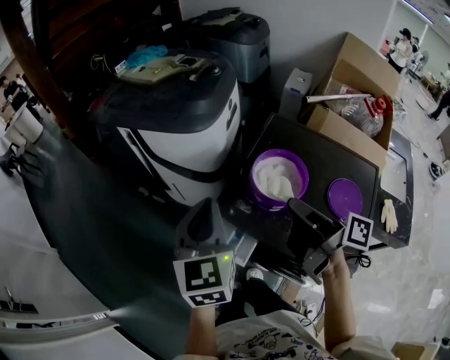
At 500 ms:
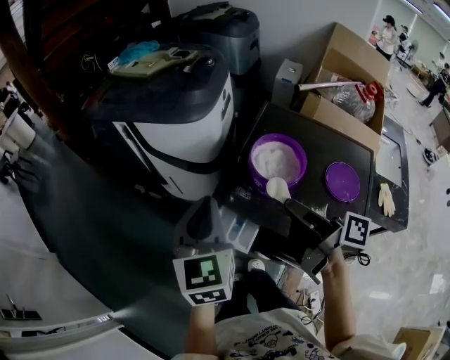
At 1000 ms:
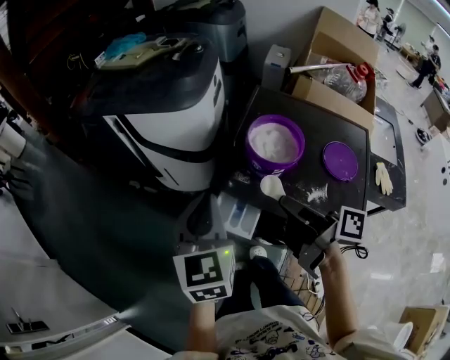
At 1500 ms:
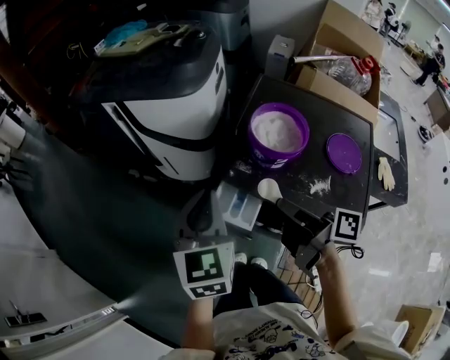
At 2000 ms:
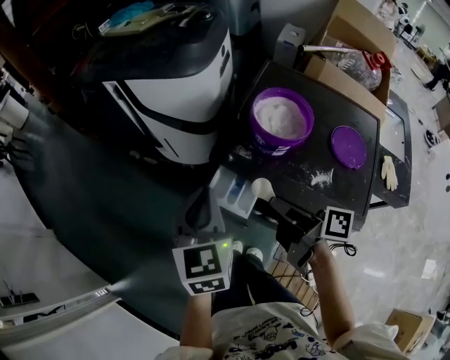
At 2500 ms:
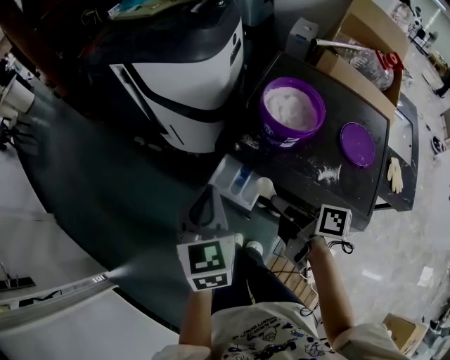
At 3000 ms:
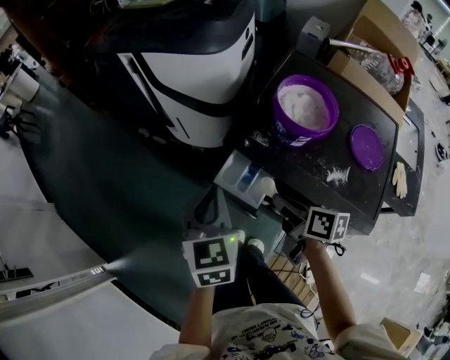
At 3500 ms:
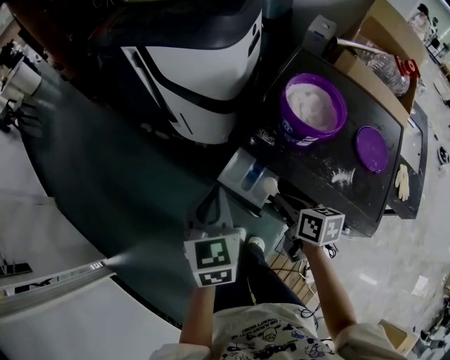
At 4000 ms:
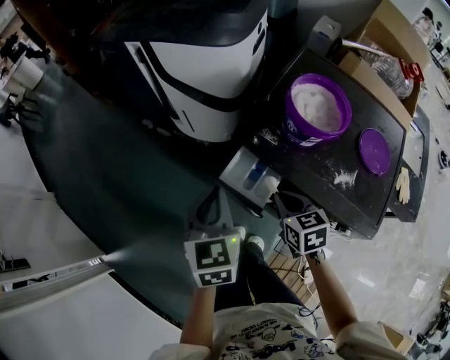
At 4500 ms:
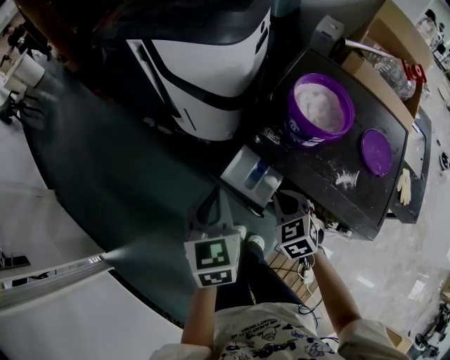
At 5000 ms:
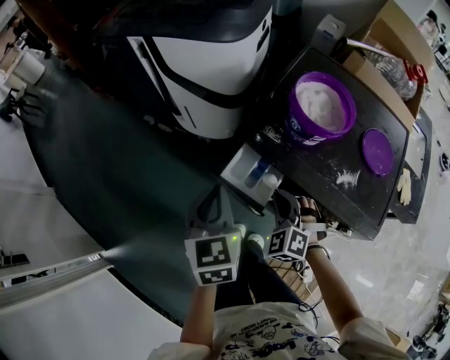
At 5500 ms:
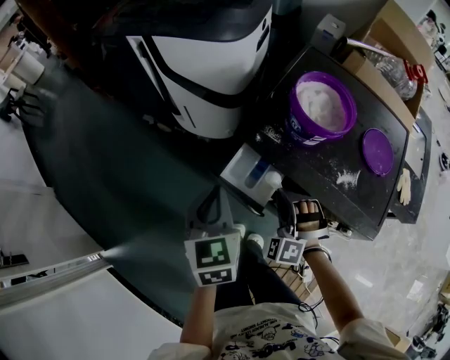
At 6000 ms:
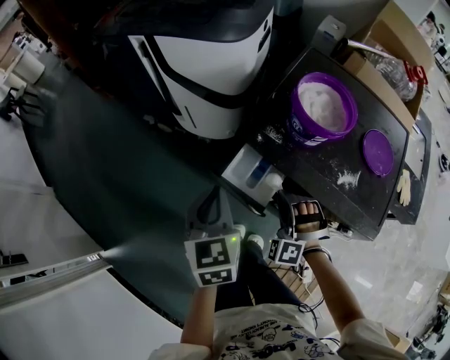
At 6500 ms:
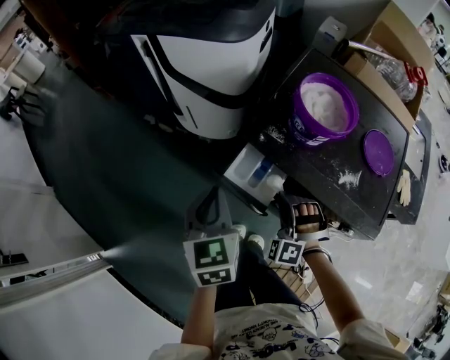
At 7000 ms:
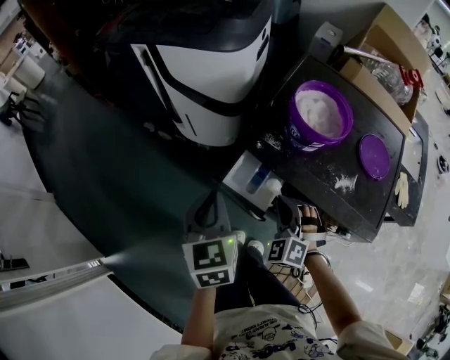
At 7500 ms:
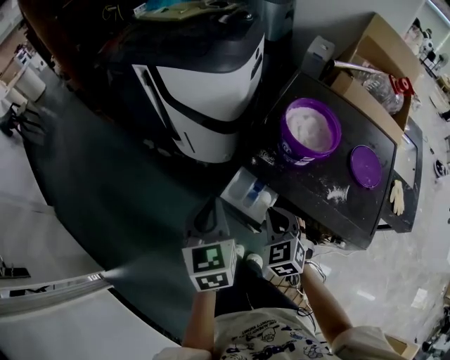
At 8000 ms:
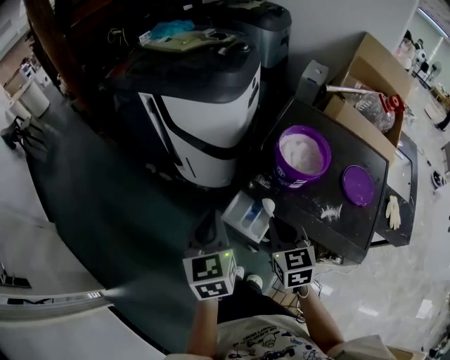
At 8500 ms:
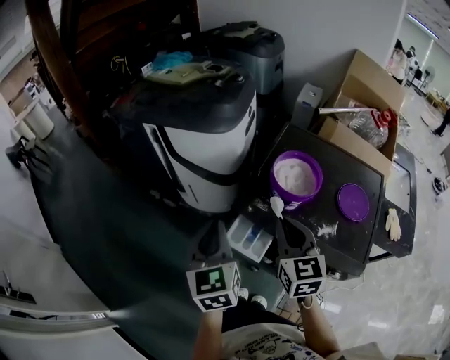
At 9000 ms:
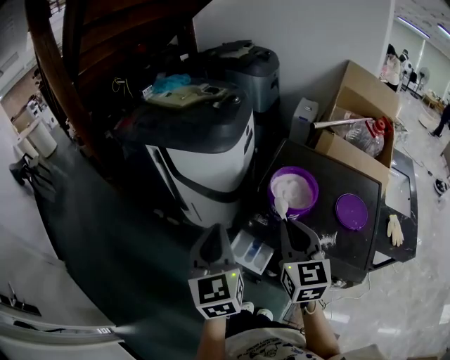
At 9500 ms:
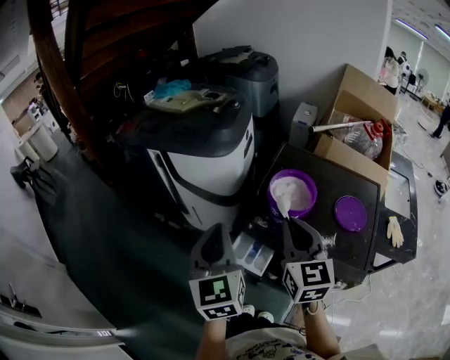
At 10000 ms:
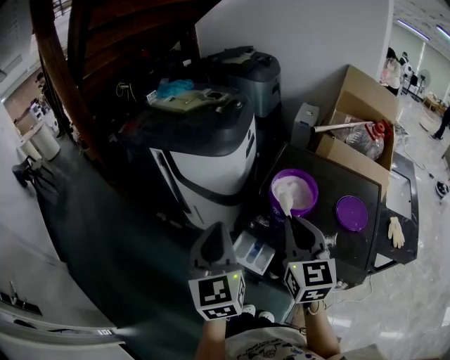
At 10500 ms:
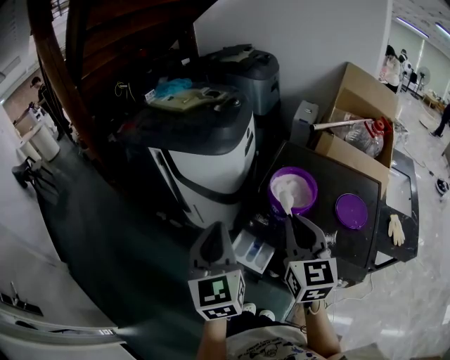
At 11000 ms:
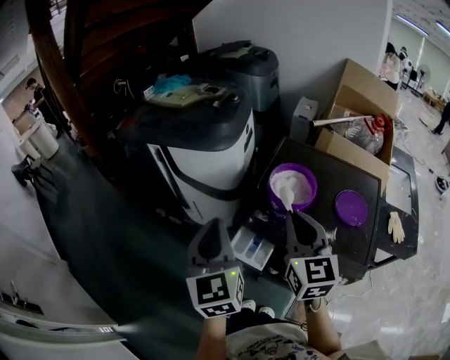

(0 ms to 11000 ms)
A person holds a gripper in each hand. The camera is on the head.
0 ms - 2000 ms: The left gripper goes roughly 10 cm downward and backward. Meanwhile the right gripper goes approximately 15 cm downward, backward and to the left.
2000 ms - 3500 ms: The left gripper heads downward, covering approximately 5 cm. Meanwhile the right gripper travels downward by approximately 10 cm, and turns by approximately 40 degrees.
3500 ms - 5500 ms: The right gripper rotates around the line of its fingers by some 100 degrees, counterclockwise from behind.
5500 ms - 7500 ms: The right gripper rotates around the line of its fingers by some 50 degrees, clockwise from behind.
7500 ms - 9000 ms: The right gripper is displaced upward by some 25 cm, and rotates roughly 40 degrees. The left gripper is displaced upward by roughly 15 cm.
9000 ms - 11000 ms: The grippers stay close to where they were, moving slightly.

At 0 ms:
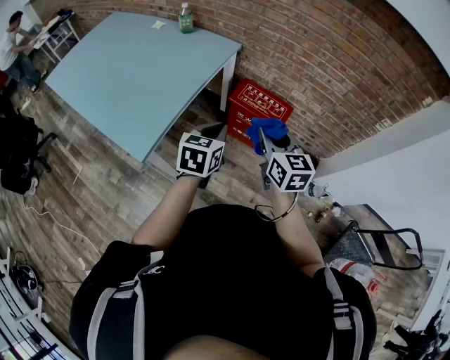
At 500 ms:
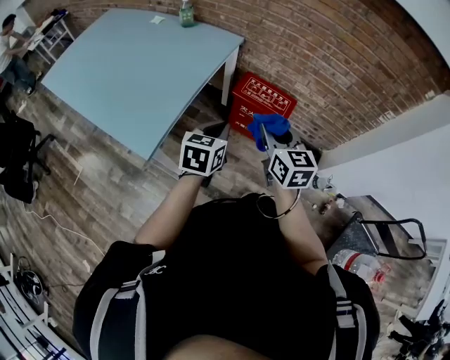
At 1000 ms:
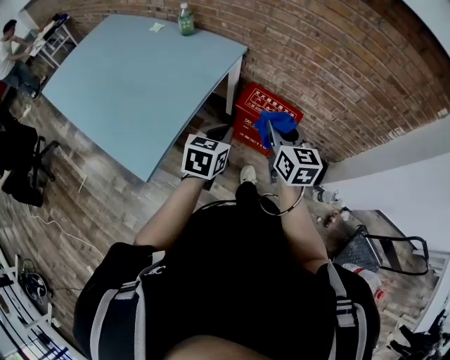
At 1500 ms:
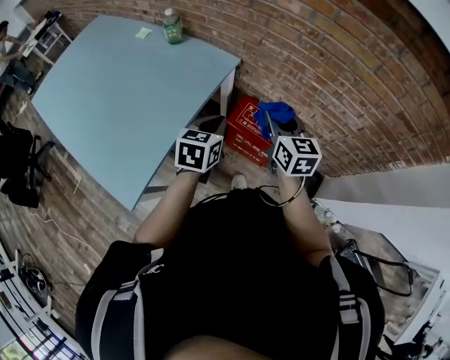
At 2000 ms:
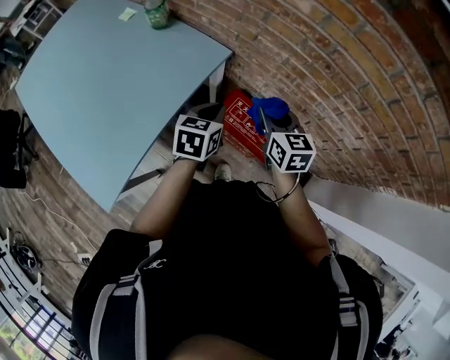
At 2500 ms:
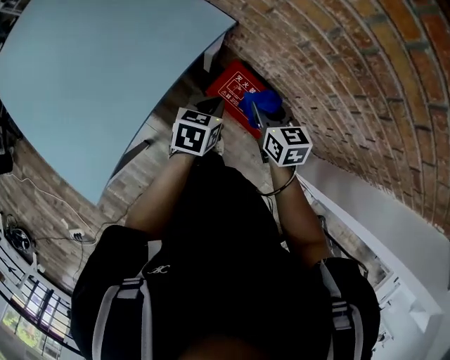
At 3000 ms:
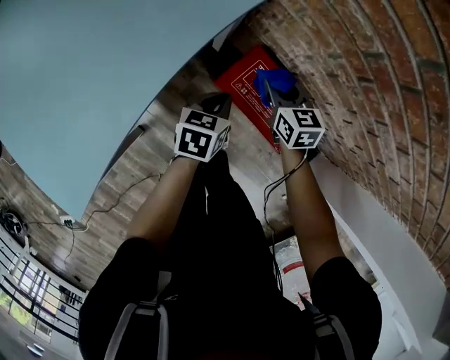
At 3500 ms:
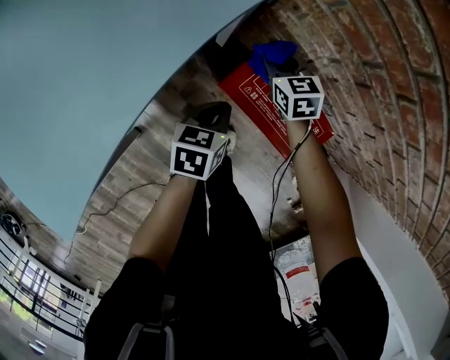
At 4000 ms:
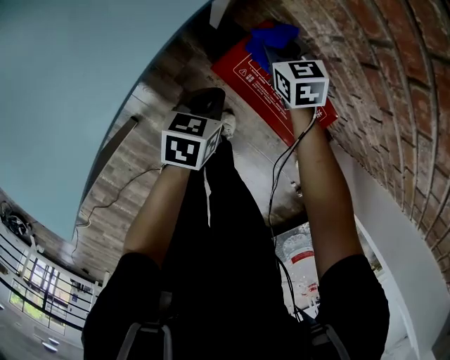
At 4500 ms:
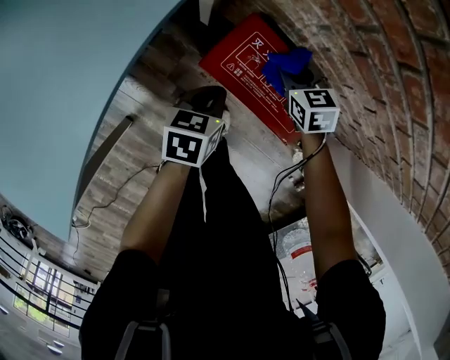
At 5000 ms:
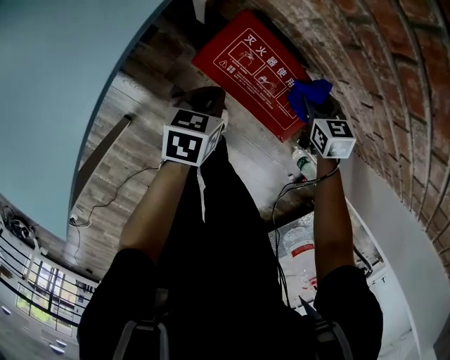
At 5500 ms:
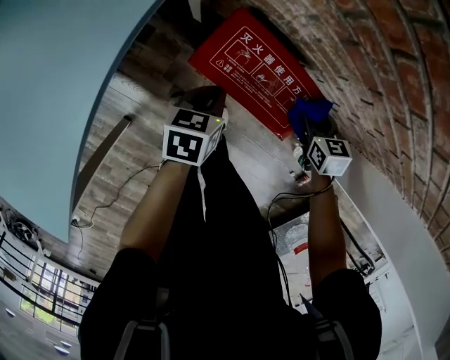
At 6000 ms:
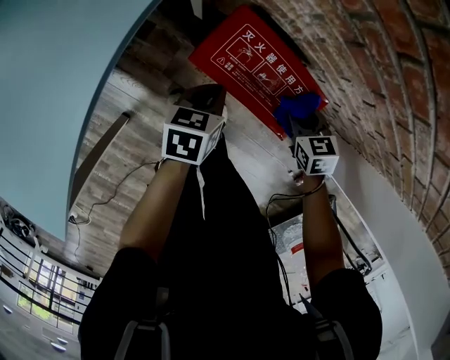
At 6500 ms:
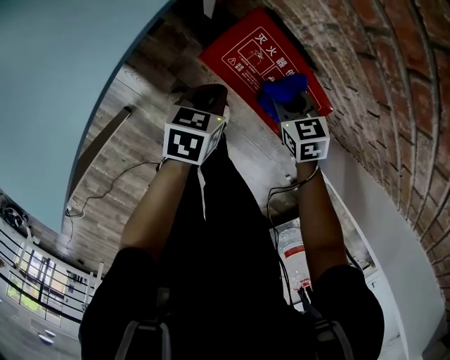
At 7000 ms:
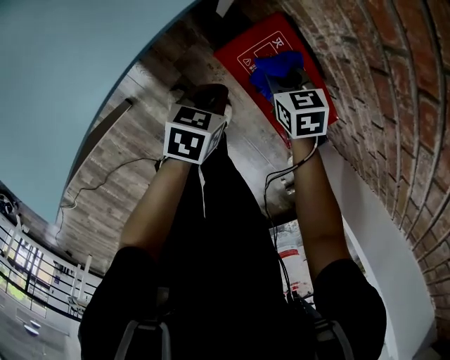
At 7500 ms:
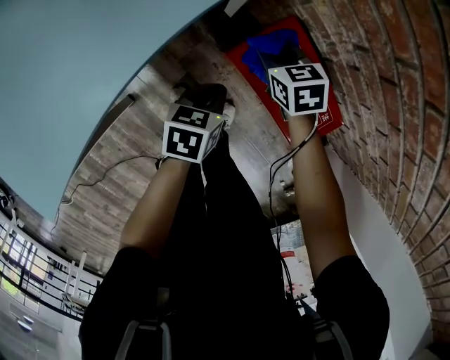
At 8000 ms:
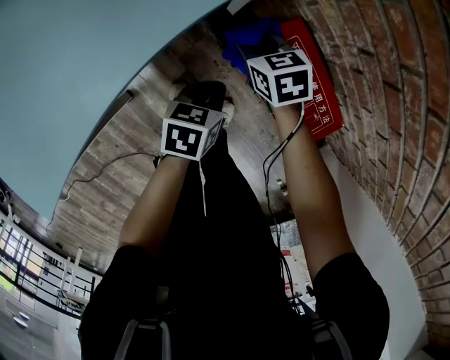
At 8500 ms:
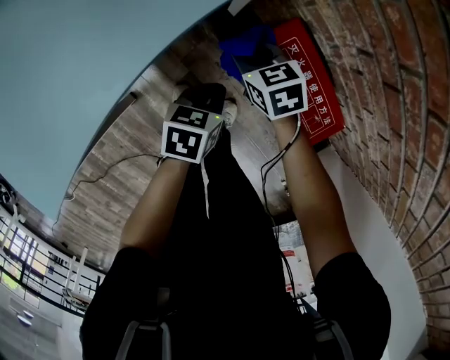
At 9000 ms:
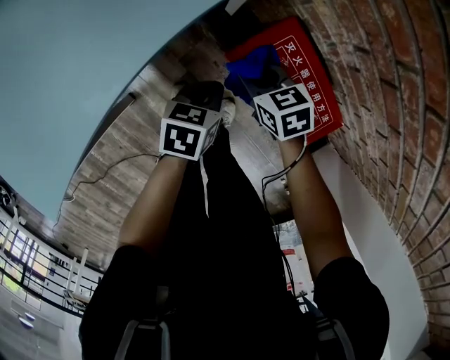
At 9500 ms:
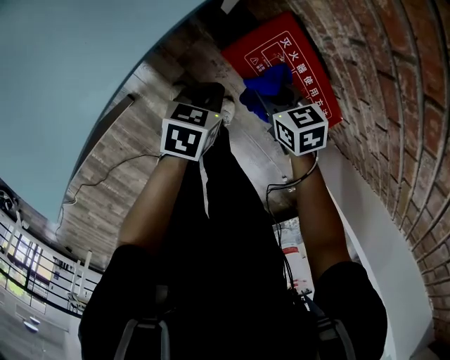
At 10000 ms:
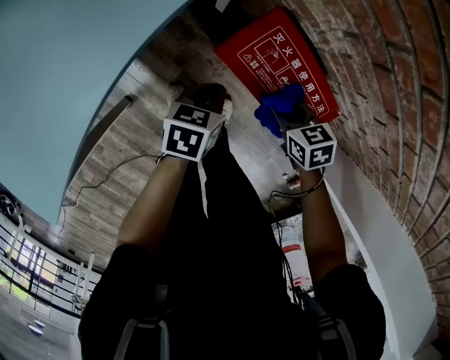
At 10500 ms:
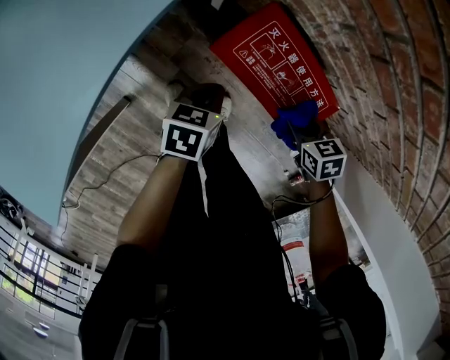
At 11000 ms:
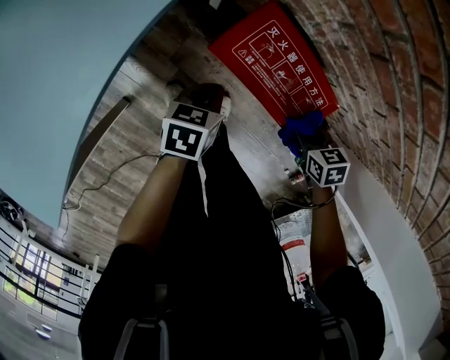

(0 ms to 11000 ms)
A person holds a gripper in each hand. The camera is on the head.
0 ms - 2000 ms: Both grippers travel together forward, approximately 40 cm.
2000 ms - 3500 ms: The left gripper is displaced downward by some 35 cm. Meanwhile the right gripper heads downward and forward, covering about 40 cm, and swivels approximately 20 degrees.
3500 ms - 5500 ms: The right gripper travels to the right and backward by about 30 cm, and swivels about 20 degrees; the left gripper is displaced to the right by about 5 cm.
5500 ms - 7500 ms: The right gripper is displaced to the left and forward by about 30 cm, and rotates roughly 30 degrees. Meanwhile the left gripper goes some 5 cm to the left.
7500 ms - 9000 ms: The right gripper travels backward by roughly 5 cm.
9000 ms - 11000 ms: The right gripper heads to the right and backward, covering approximately 25 cm, and rotates some 20 degrees.

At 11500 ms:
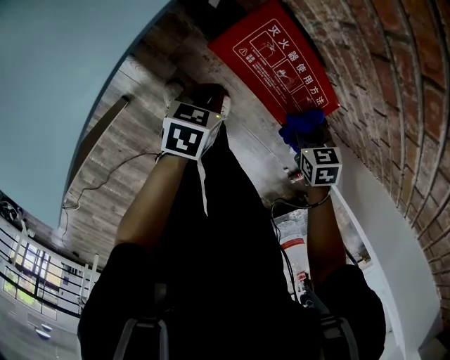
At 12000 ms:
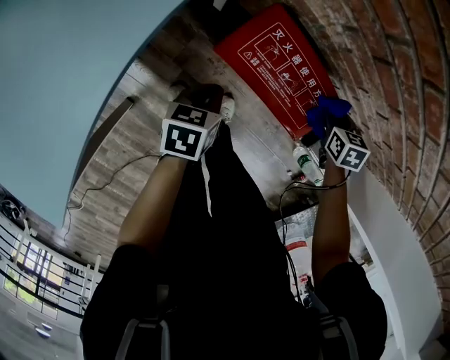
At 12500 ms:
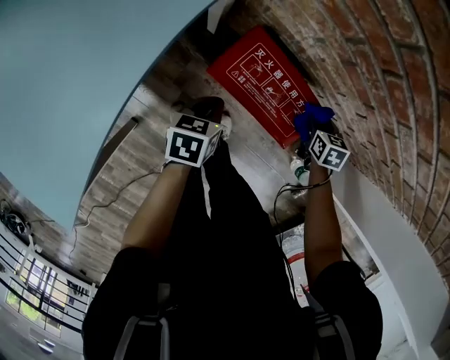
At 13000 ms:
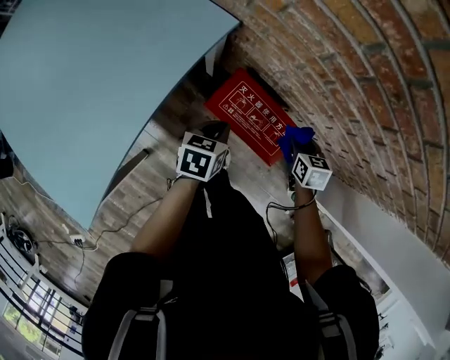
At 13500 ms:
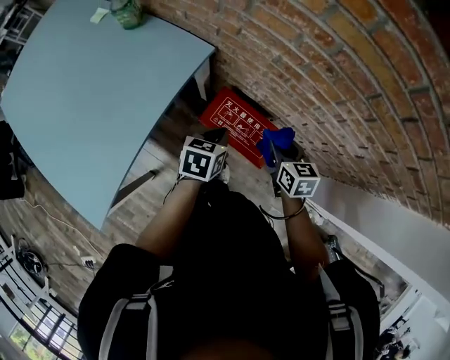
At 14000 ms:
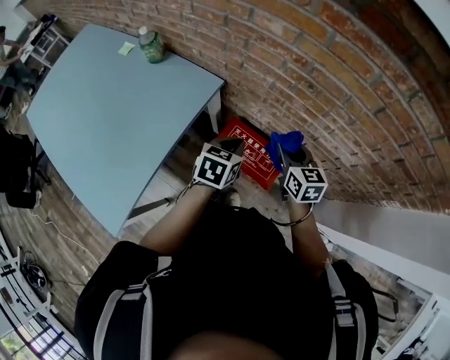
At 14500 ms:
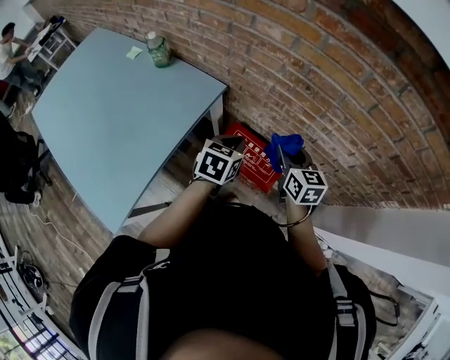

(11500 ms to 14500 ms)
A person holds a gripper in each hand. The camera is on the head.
11500 ms - 13000 ms: The left gripper moves upward, approximately 15 cm, while the right gripper heads upward and forward, covering about 15 cm, and swivels about 30 degrees.
13000 ms - 14500 ms: The two grippers go approximately 25 cm upward. The right gripper tilts its fingers about 30 degrees upward. Meanwhile the left gripper rotates some 20 degrees.

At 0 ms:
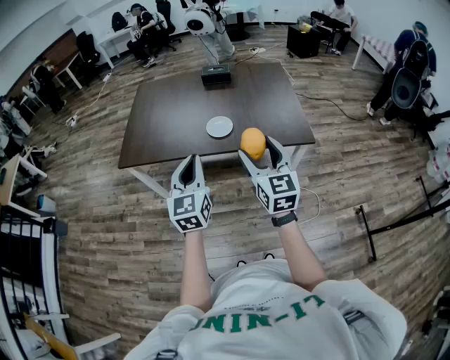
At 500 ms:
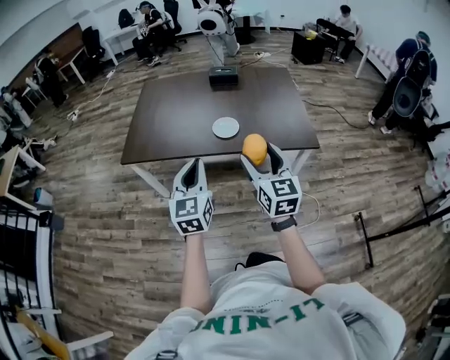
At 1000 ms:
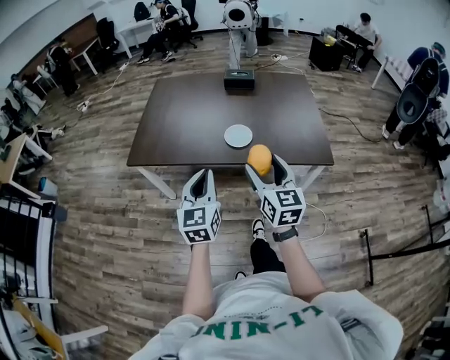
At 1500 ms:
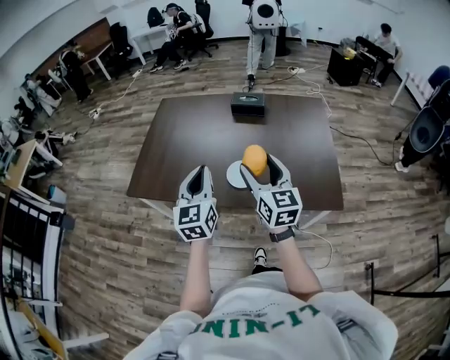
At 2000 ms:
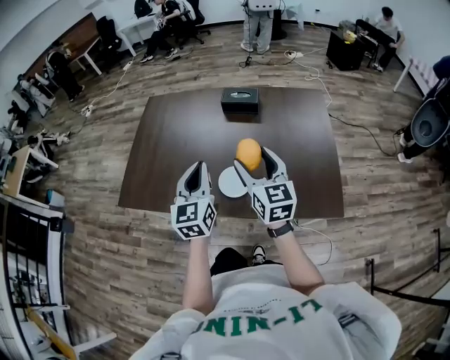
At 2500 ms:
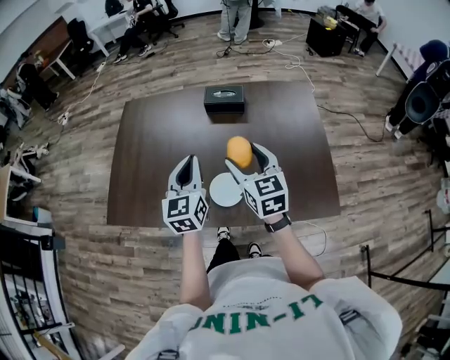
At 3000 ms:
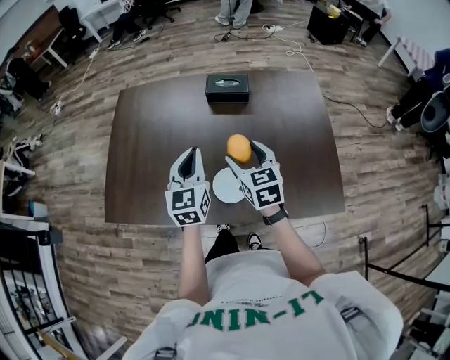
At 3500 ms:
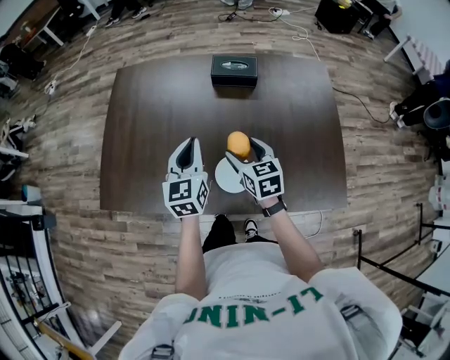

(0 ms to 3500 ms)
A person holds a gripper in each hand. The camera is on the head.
0 ms - 2000 ms: Both grippers travel together forward, approximately 40 cm.
2000 ms - 3500 ms: The right gripper moves downward and forward, roughly 20 cm, and rotates some 20 degrees. Meanwhile the left gripper travels forward and downward by some 20 cm.
